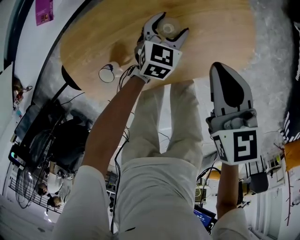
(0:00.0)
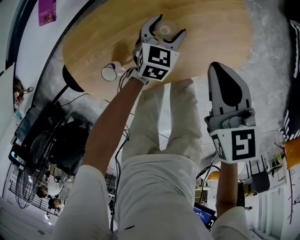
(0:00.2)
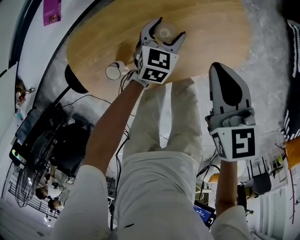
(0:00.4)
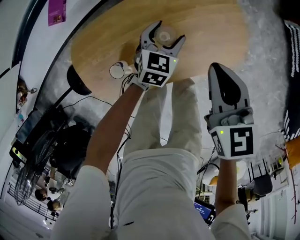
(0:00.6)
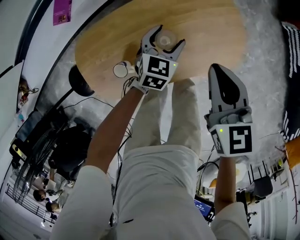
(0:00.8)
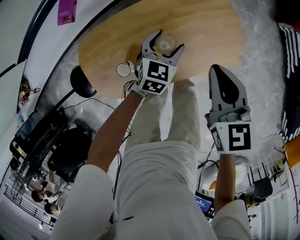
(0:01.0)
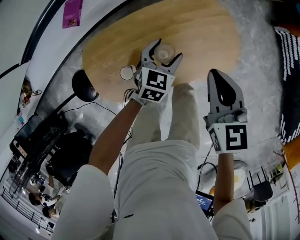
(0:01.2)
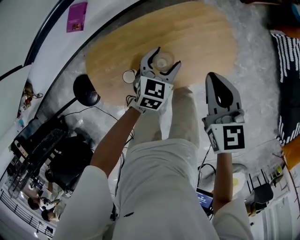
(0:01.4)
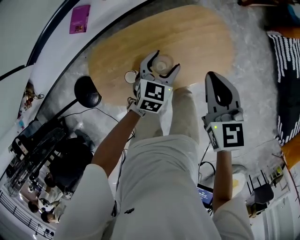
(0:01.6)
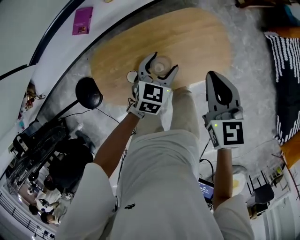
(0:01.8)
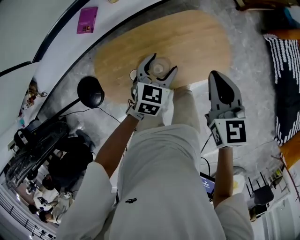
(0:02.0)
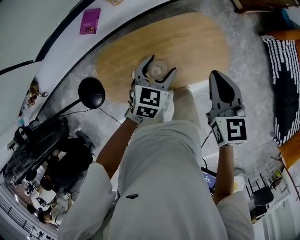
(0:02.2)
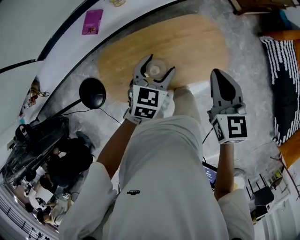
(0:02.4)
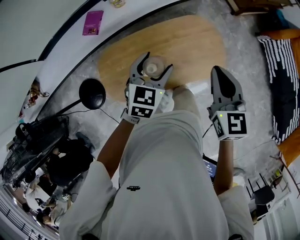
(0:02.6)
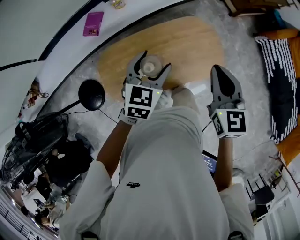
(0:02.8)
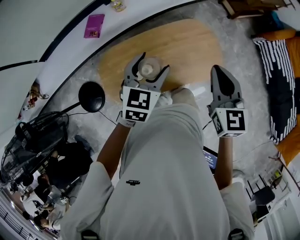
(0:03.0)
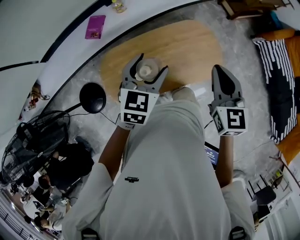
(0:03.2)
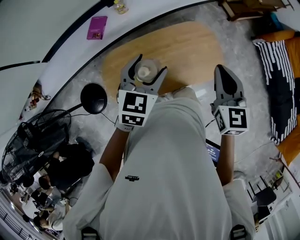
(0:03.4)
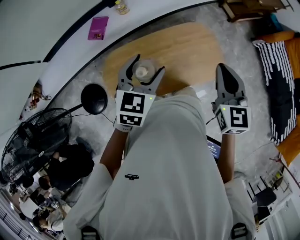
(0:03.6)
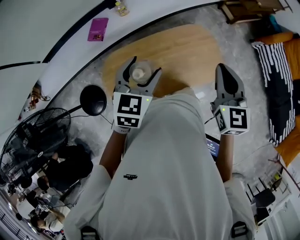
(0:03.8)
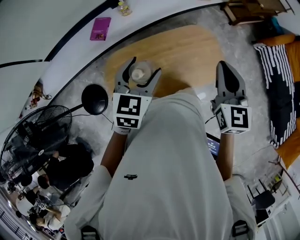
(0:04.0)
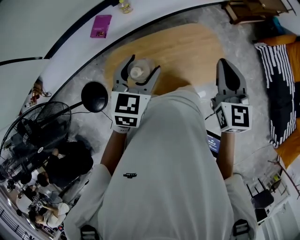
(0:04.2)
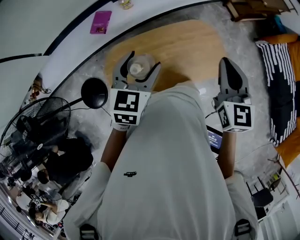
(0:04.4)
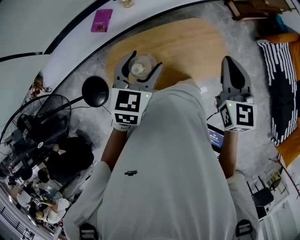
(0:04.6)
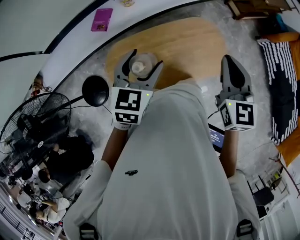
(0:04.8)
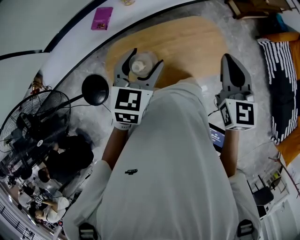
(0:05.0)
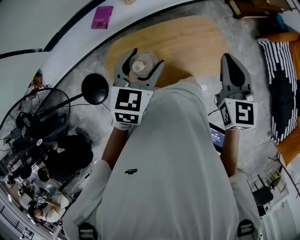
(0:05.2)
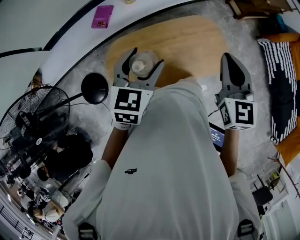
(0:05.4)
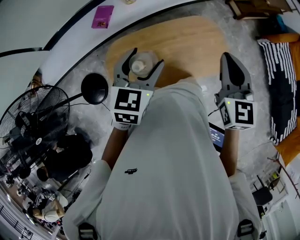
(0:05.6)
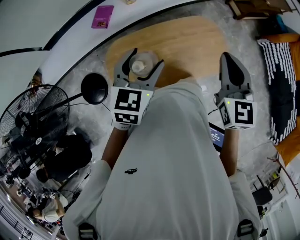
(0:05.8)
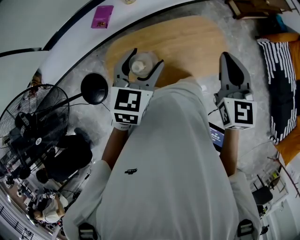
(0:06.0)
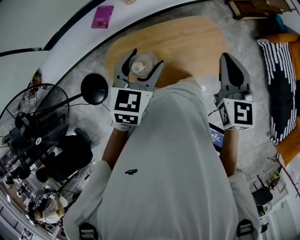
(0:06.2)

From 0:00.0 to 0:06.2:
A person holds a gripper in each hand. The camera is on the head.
From 0:00.0 to 0:01.6: The right gripper goes about 15 cm upward. The left gripper goes about 25 cm upward and backward.
From 0:01.6 to 0:03.2: The left gripper goes some 25 cm upward. Meanwhile the right gripper travels upward by about 15 cm.
From 0:03.2 to 0:04.6: The left gripper changes place by approximately 5 cm.
From 0:04.6 to 0:06.2: The grippers move only a little.

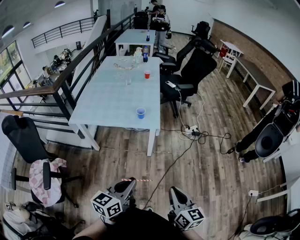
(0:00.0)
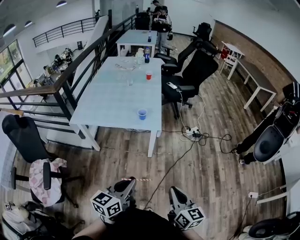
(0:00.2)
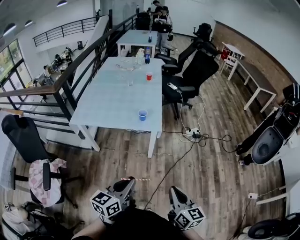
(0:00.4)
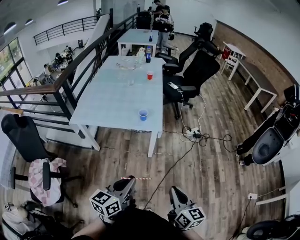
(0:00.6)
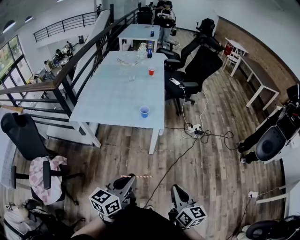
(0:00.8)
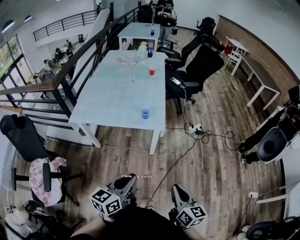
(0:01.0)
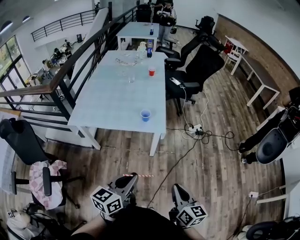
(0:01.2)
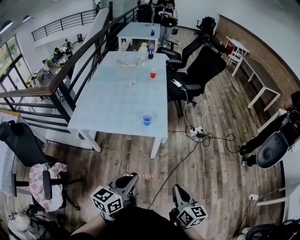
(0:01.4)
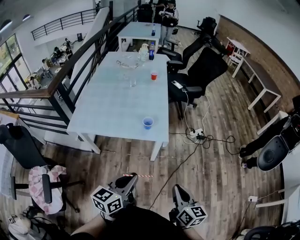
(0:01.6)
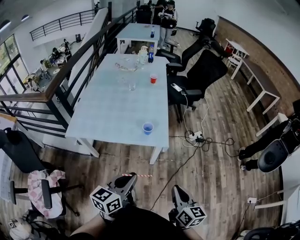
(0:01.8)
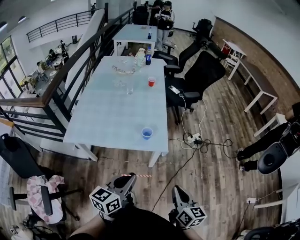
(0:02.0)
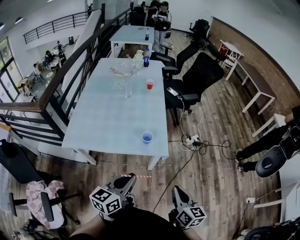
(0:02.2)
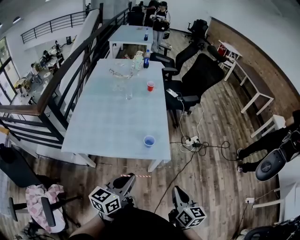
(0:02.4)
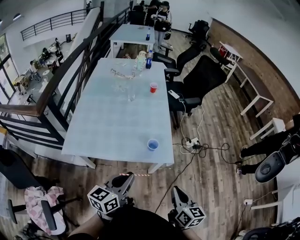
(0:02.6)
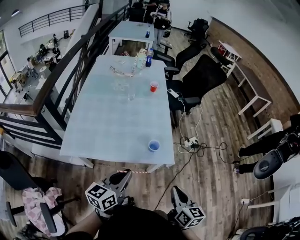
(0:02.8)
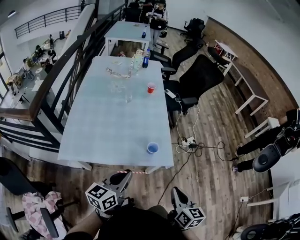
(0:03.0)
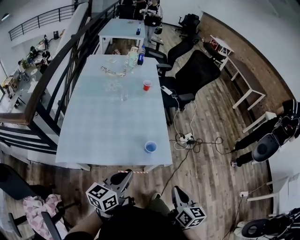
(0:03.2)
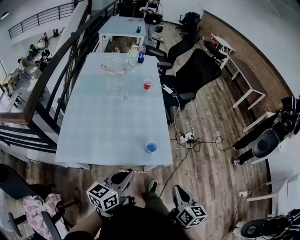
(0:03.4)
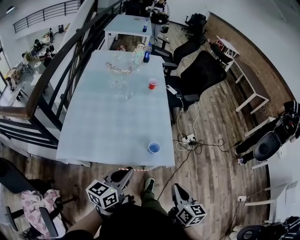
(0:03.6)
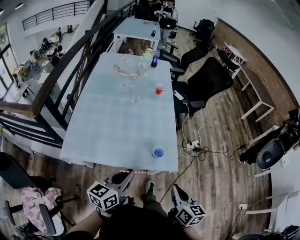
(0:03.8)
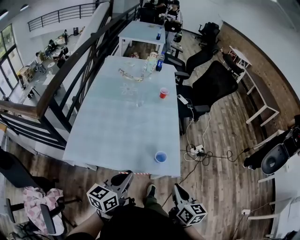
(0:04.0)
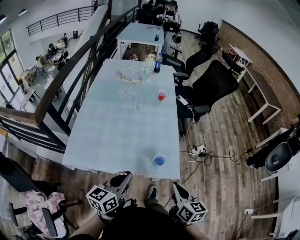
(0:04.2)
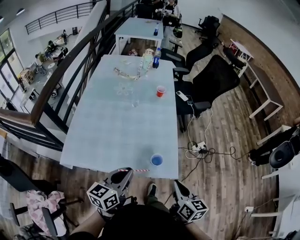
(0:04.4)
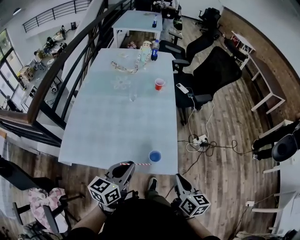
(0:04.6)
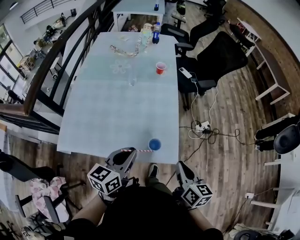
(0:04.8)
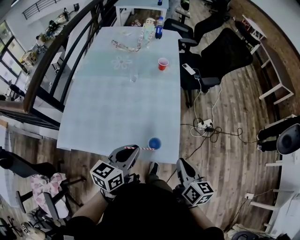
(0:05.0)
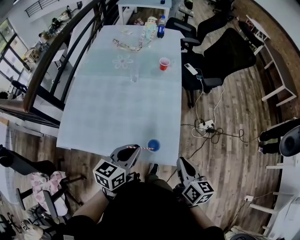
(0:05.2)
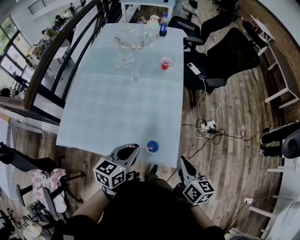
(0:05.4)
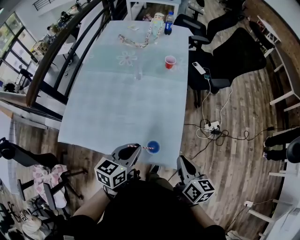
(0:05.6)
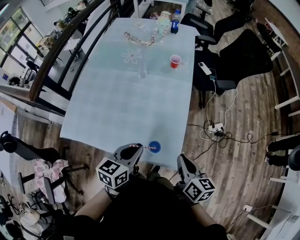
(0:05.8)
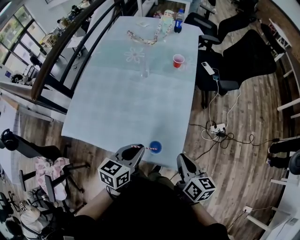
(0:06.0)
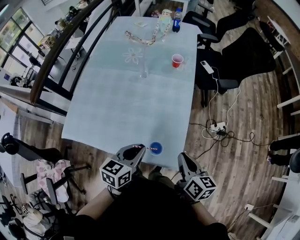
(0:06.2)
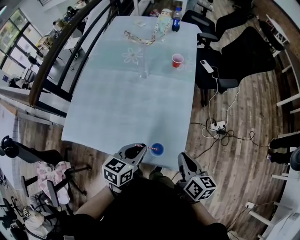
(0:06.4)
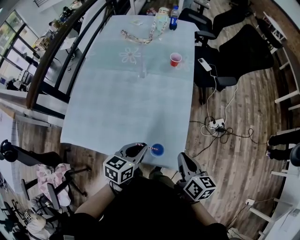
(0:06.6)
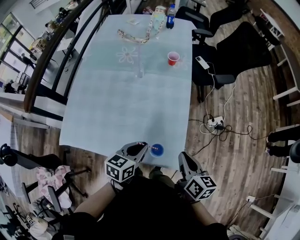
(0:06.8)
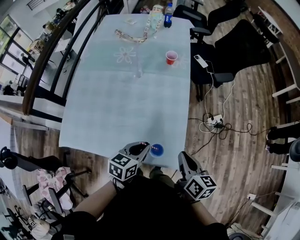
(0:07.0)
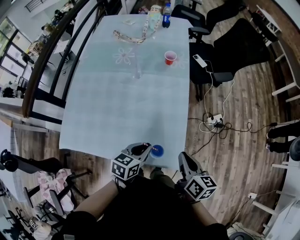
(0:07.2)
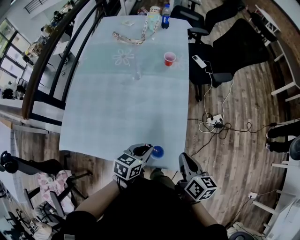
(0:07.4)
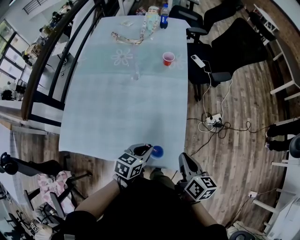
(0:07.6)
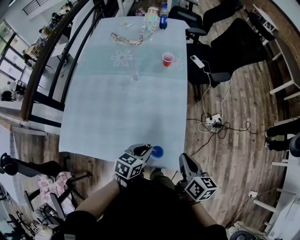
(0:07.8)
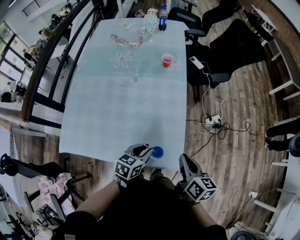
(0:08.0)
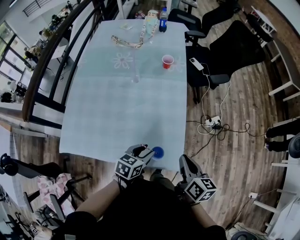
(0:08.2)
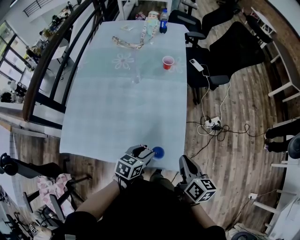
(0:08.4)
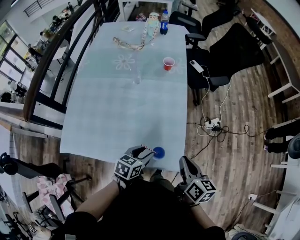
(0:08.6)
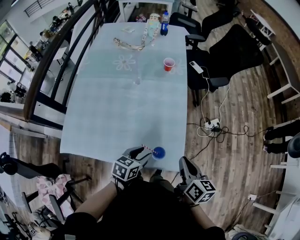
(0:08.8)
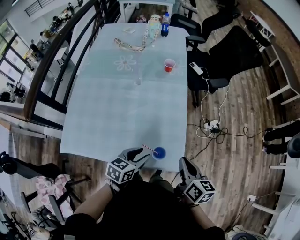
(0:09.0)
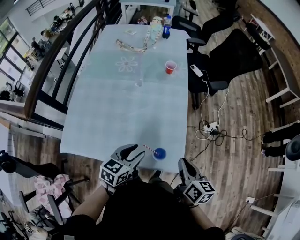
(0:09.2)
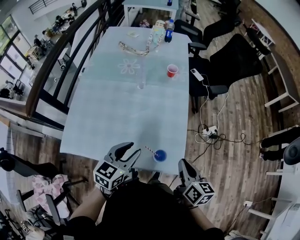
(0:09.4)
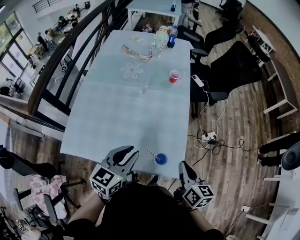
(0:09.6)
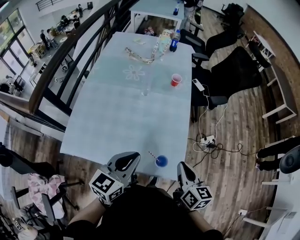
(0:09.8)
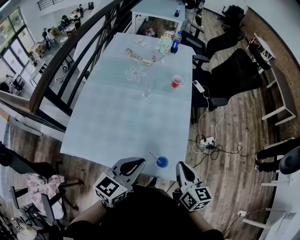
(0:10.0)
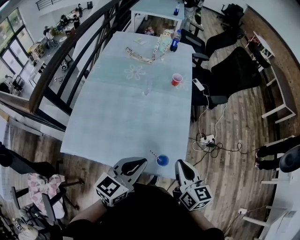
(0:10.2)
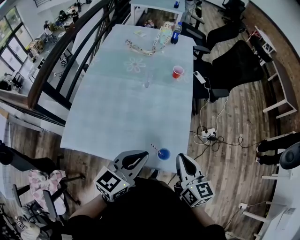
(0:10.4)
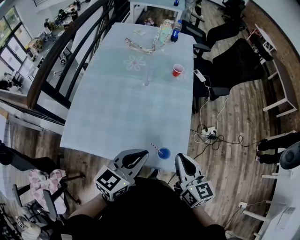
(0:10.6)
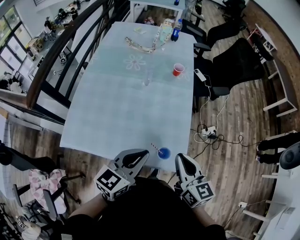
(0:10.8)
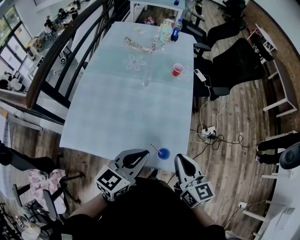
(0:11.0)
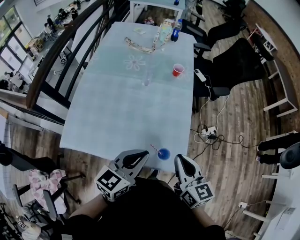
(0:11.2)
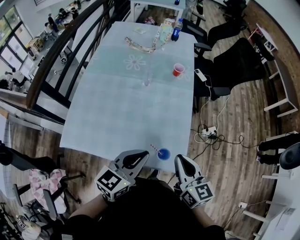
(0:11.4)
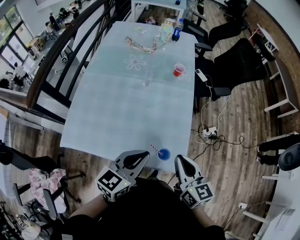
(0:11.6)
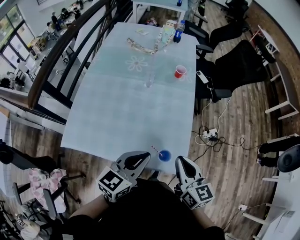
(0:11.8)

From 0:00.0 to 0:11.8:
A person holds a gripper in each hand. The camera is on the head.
From 0:00.0 to 0:01.4: The right gripper goes some 10 cm forward. The left gripper travels forward and to the left by about 15 cm.
From 0:01.4 to 0:03.0: Both grippers travel together forward and to the left, roughly 30 cm.
From 0:03.0 to 0:04.4: The grippers both shift forward by roughly 10 cm.
From 0:04.4 to 0:06.0: The left gripper is displaced forward, to the right and downward by roughly 15 cm; the right gripper shifts about 15 cm forward.
From 0:06.0 to 0:07.4: The left gripper shifts some 10 cm downward.
From 0:07.4 to 0:08.8: The left gripper opens up.
From 0:08.8 to 0:10.4: The left gripper goes about 20 cm upward, swivels some 30 degrees, and closes, while the right gripper is displaced to the left and upward by approximately 10 cm, and changes its angle by about 30 degrees.
From 0:10.4 to 0:11.8: The grippers move only a little.

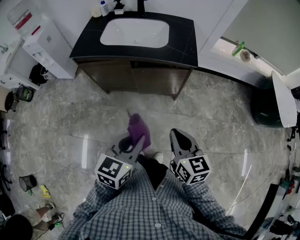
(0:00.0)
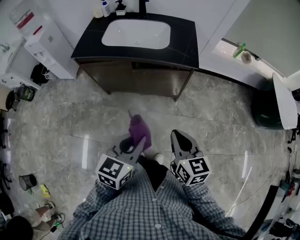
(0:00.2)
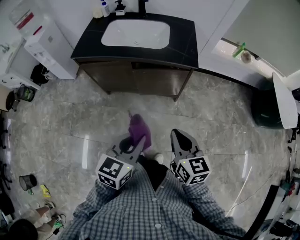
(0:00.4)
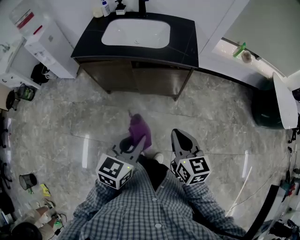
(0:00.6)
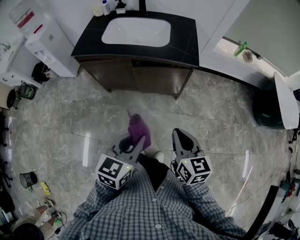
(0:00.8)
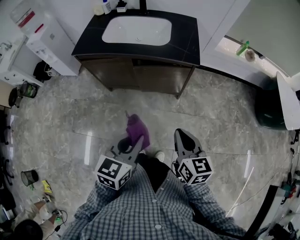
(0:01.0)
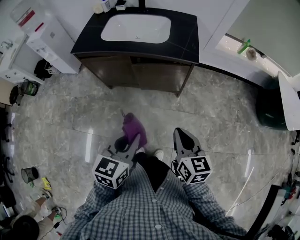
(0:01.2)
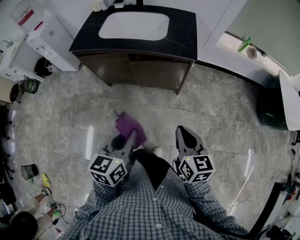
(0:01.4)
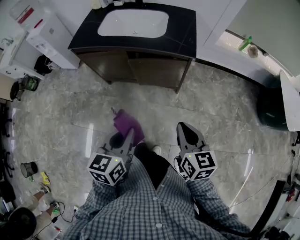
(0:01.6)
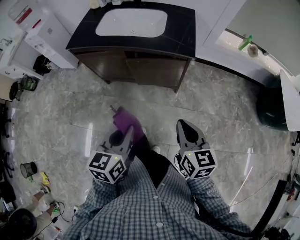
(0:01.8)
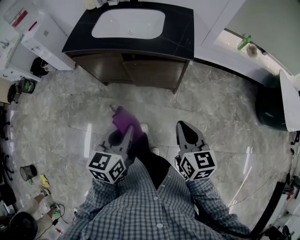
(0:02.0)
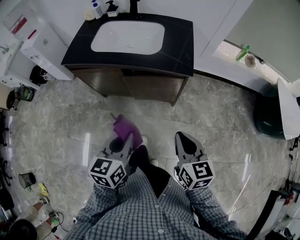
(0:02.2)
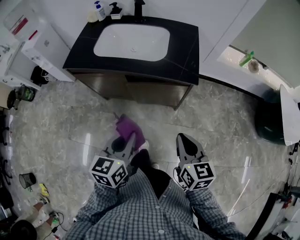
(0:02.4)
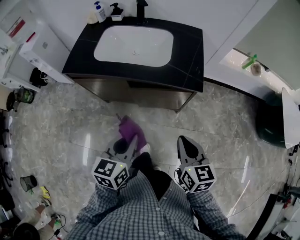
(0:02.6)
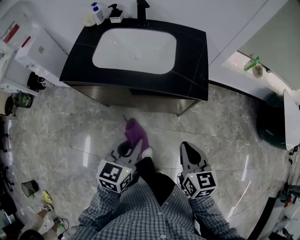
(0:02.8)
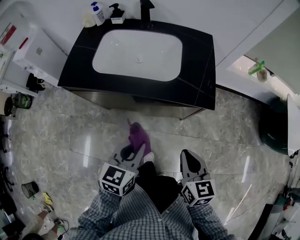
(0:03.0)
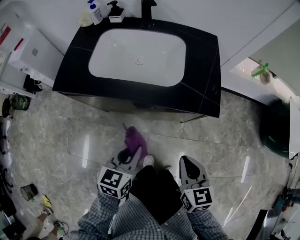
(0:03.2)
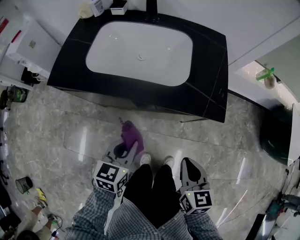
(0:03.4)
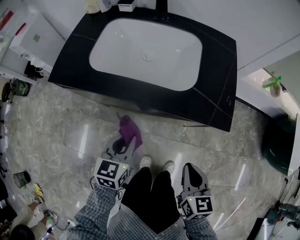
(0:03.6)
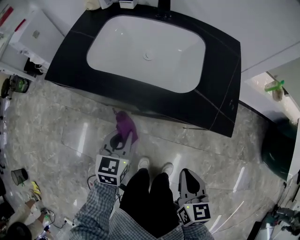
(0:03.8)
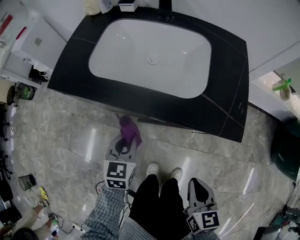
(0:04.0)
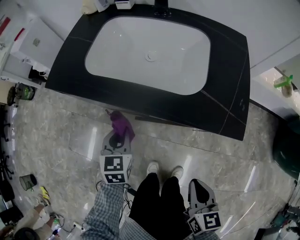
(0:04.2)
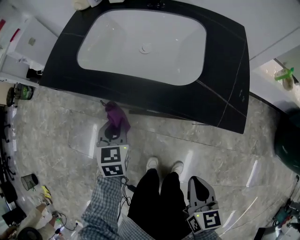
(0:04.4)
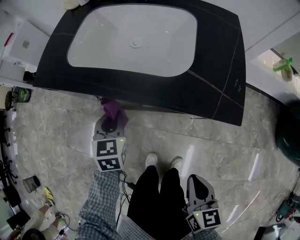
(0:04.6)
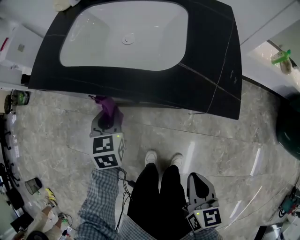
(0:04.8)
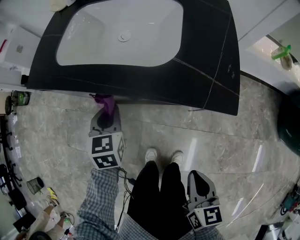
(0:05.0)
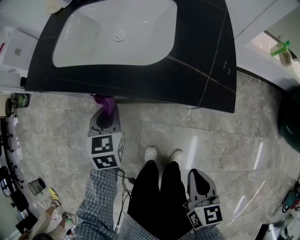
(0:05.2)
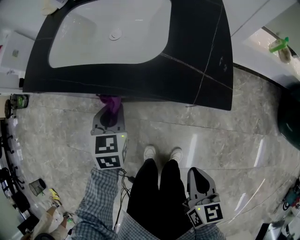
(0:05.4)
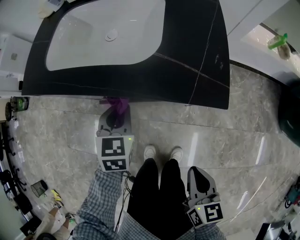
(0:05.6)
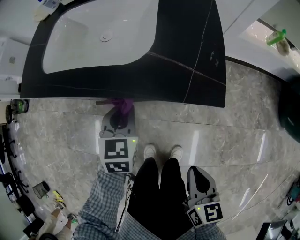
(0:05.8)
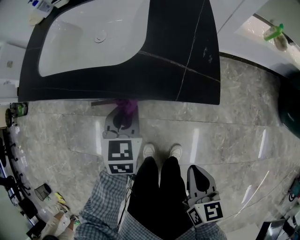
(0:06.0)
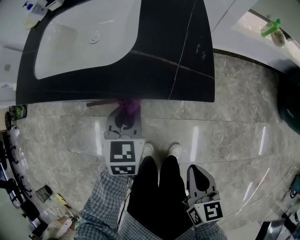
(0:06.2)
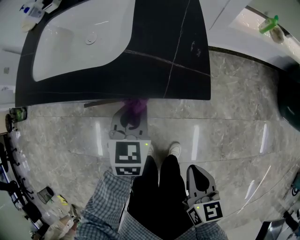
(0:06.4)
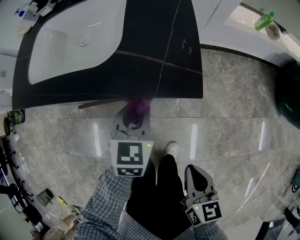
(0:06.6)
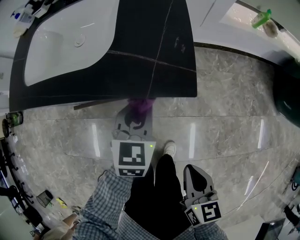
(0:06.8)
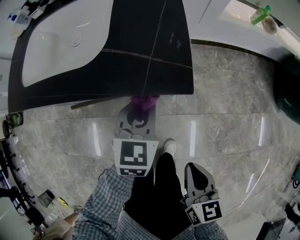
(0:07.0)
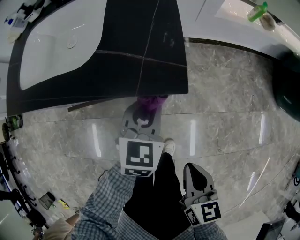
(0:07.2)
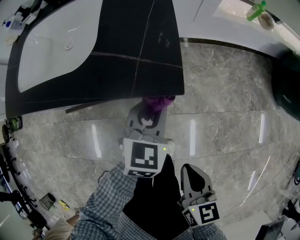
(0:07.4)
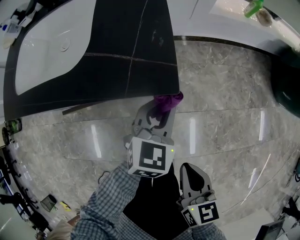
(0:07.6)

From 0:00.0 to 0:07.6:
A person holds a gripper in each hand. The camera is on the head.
From 0:00.0 to 0:01.6: The right gripper goes approximately 10 cm to the right.
From 0:01.6 to 0:03.0: Both grippers travel together forward, some 25 cm.
From 0:03.0 to 0:04.6: The right gripper goes approximately 15 cm downward; the left gripper goes some 25 cm downward, forward and to the left, and rotates about 30 degrees.
From 0:04.6 to 0:06.0: The right gripper travels to the right by roughly 10 cm. The left gripper travels to the right by some 20 cm.
From 0:06.0 to 0:07.6: The left gripper moves to the right, some 20 cm, and changes its angle by about 30 degrees, while the right gripper moves to the right, roughly 5 cm.
